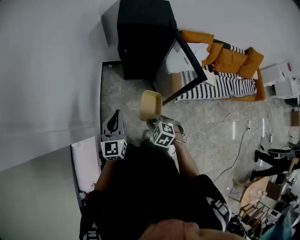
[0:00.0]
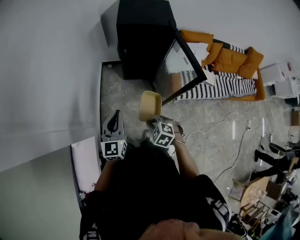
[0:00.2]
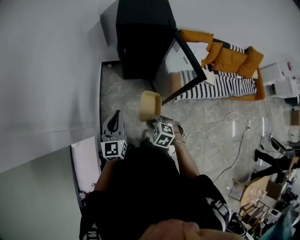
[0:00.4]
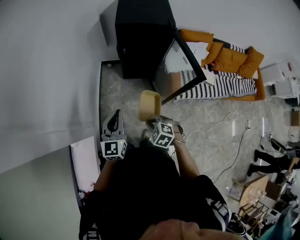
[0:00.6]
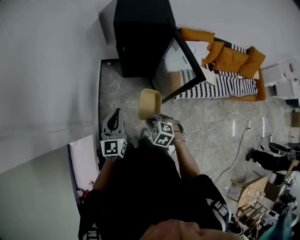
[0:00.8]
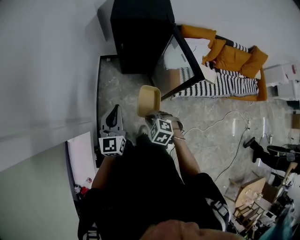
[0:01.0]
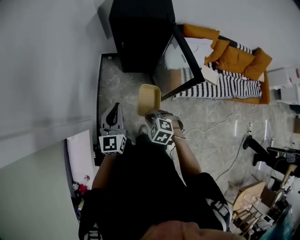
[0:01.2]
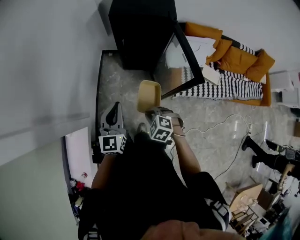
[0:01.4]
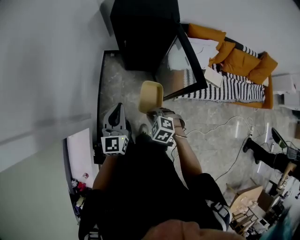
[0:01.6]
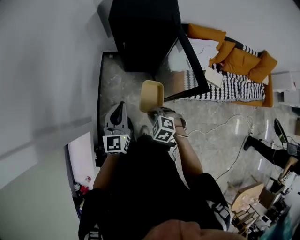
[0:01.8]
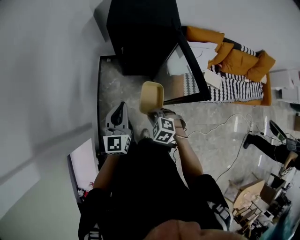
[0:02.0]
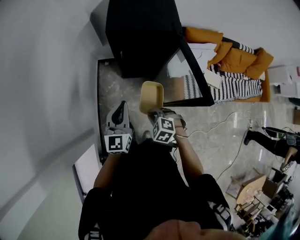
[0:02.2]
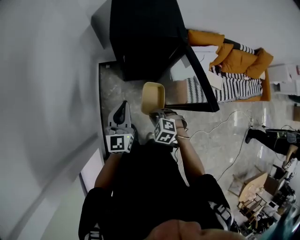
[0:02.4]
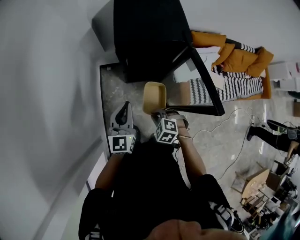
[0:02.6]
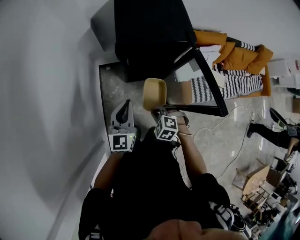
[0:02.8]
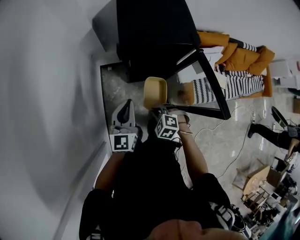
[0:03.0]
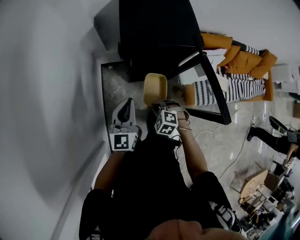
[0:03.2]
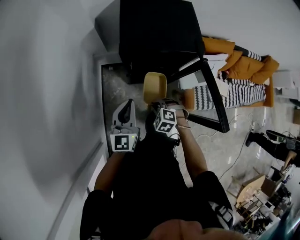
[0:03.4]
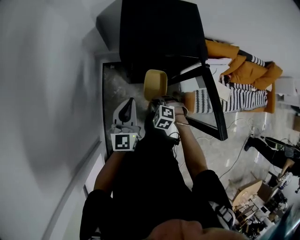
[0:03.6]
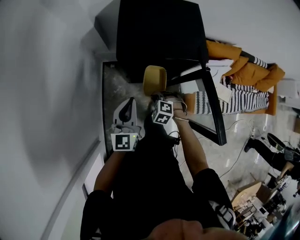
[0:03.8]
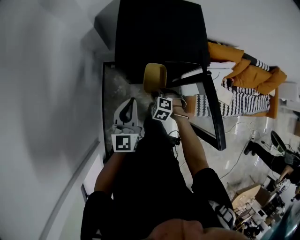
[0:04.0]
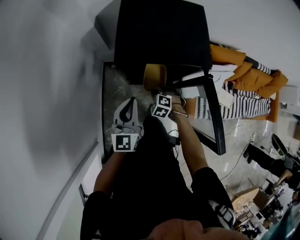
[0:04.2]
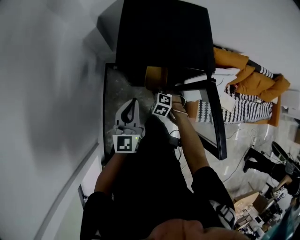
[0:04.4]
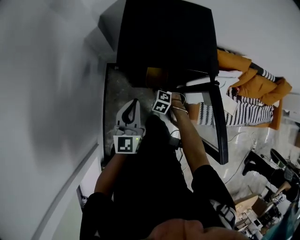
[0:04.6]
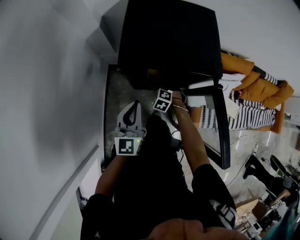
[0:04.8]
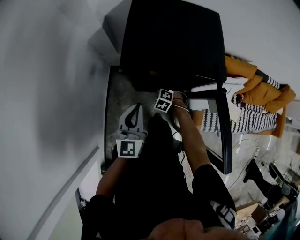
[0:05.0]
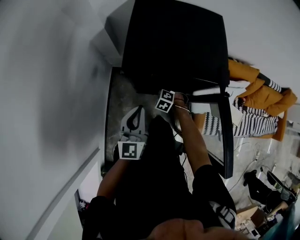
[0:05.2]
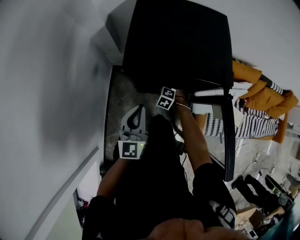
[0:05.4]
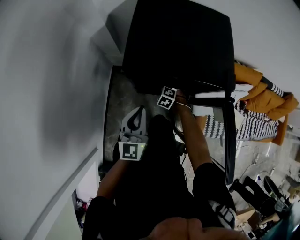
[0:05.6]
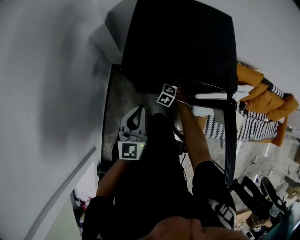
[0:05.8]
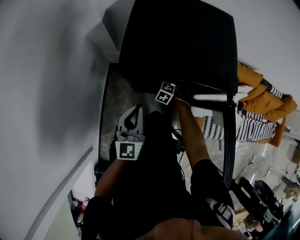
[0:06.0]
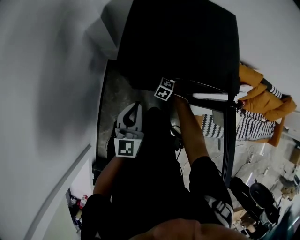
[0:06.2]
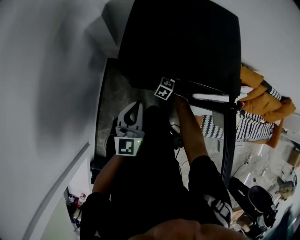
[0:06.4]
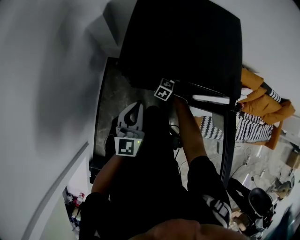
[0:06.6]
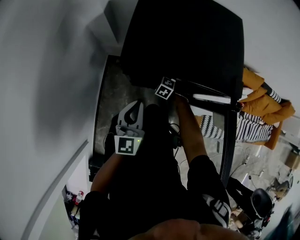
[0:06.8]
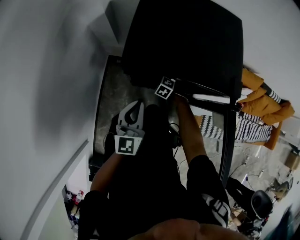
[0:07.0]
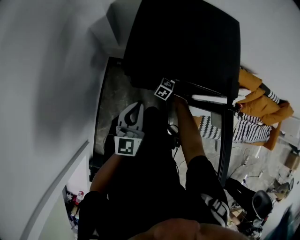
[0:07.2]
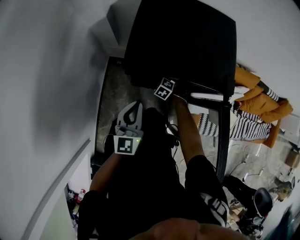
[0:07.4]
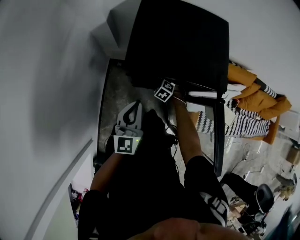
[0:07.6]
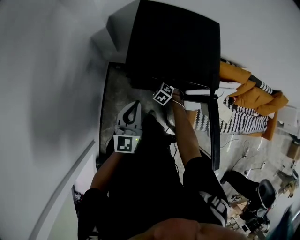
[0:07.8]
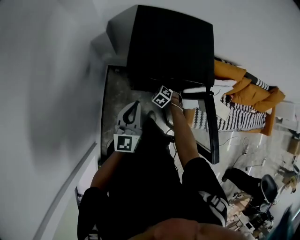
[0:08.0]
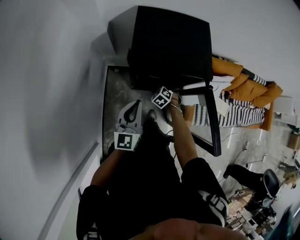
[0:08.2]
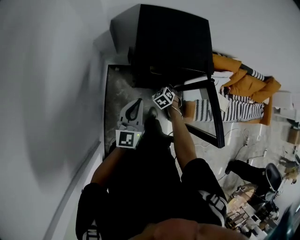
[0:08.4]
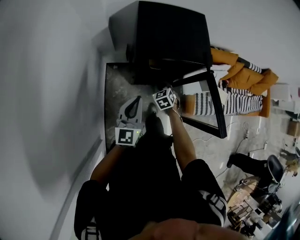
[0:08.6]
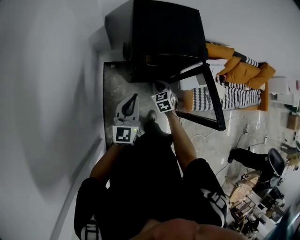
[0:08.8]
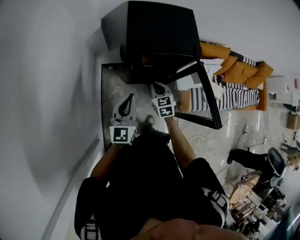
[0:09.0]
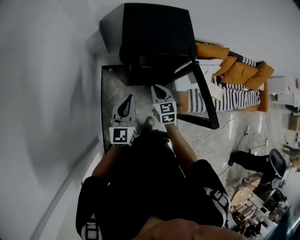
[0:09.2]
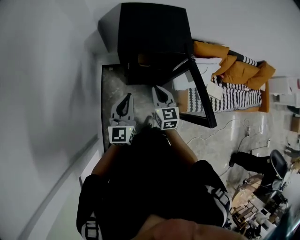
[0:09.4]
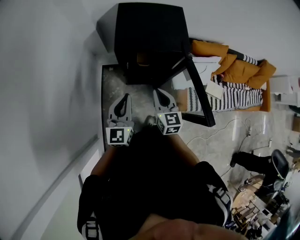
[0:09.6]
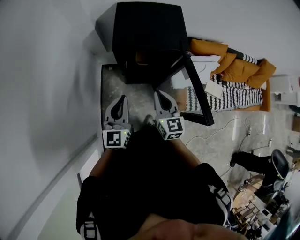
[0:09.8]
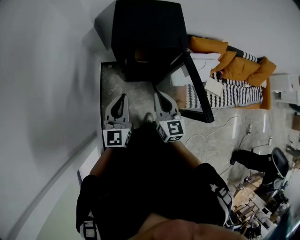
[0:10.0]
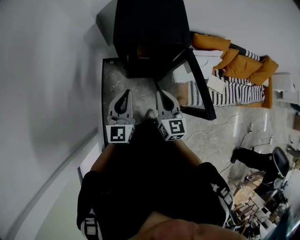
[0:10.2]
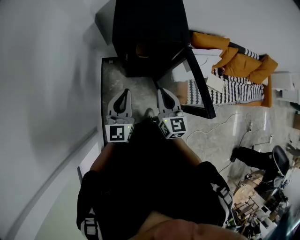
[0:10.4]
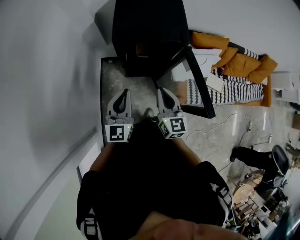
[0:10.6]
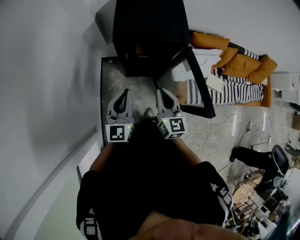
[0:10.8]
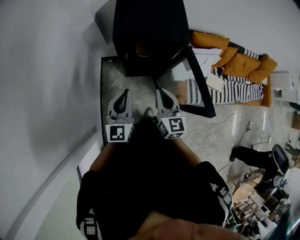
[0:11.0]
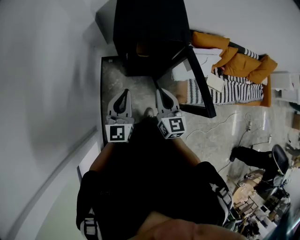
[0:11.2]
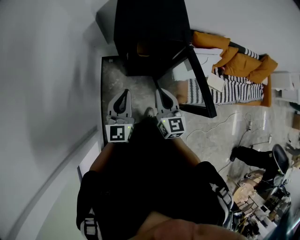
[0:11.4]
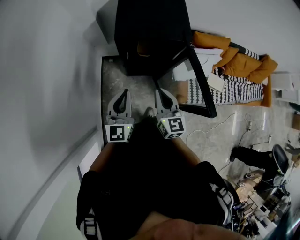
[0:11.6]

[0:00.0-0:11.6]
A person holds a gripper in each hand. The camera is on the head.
0:00.0 to 0:01.4: The grippers both shift to the right by about 10 cm.
0:01.4 to 0:02.8: Both grippers travel together forward, approximately 25 cm.
0:02.8 to 0:04.4: The right gripper shifts some 25 cm forward, downward and to the right, while the left gripper travels forward, to the right and downward by roughly 15 cm.
0:04.4 to 0:05.8: The right gripper travels downward and forward by roughly 15 cm; the left gripper travels downward by approximately 10 cm.
0:05.8 to 0:07.2: The right gripper opens up.
0:07.2 to 0:08.8: The right gripper travels upward and backward by approximately 30 cm, twists about 50 degrees clockwise, seen from behind, and closes its fingers. The left gripper moves upward, backward and to the left, approximately 20 cm.
0:08.8 to 0:10.2: The left gripper is displaced to the right and backward by about 10 cm. Meanwhile the right gripper shifts about 25 cm upward and backward, and angles its fingers upward, by some 30 degrees.
0:10.2 to 0:11.6: The grippers make only small movements.

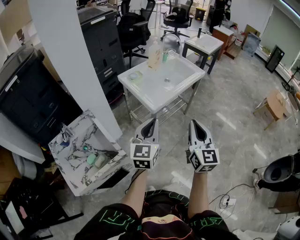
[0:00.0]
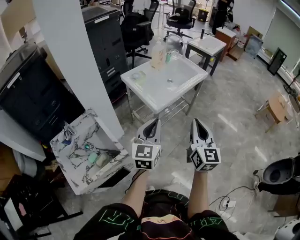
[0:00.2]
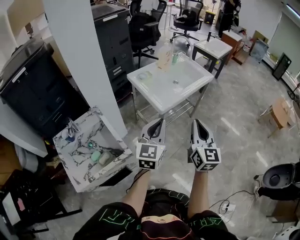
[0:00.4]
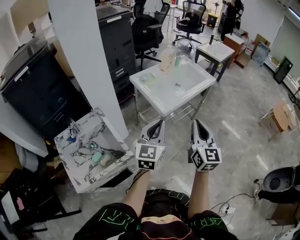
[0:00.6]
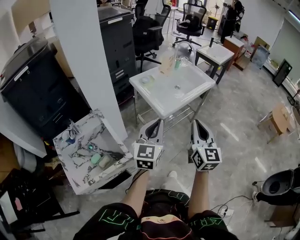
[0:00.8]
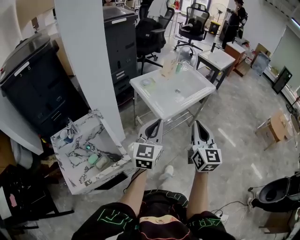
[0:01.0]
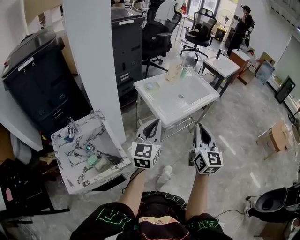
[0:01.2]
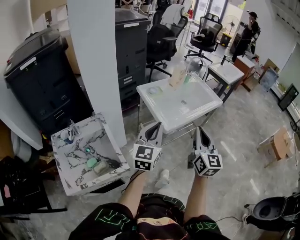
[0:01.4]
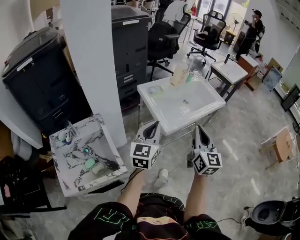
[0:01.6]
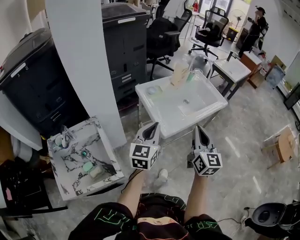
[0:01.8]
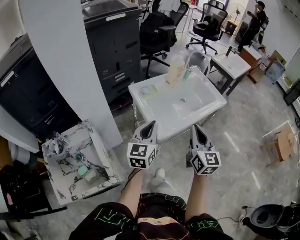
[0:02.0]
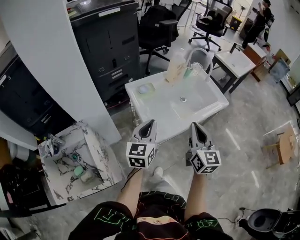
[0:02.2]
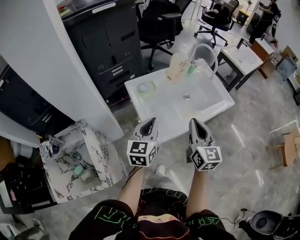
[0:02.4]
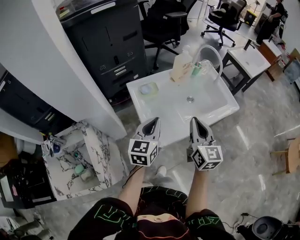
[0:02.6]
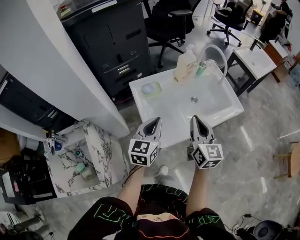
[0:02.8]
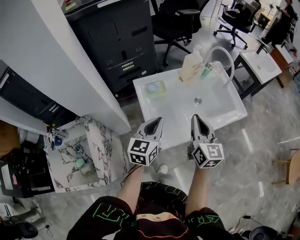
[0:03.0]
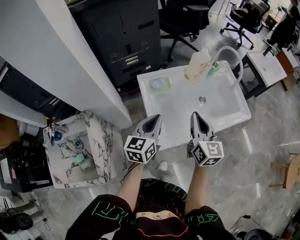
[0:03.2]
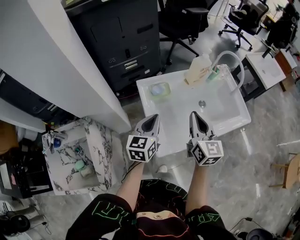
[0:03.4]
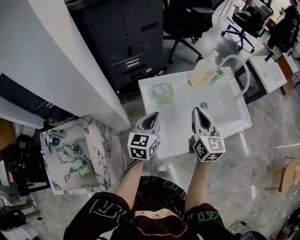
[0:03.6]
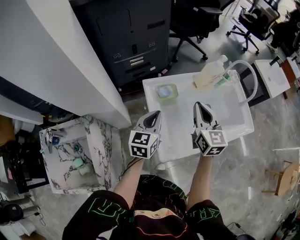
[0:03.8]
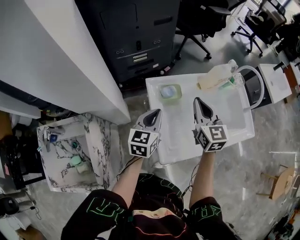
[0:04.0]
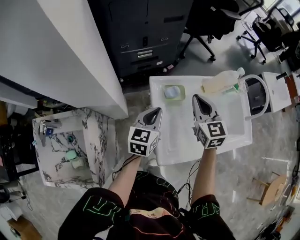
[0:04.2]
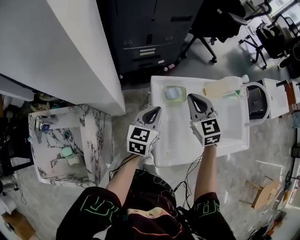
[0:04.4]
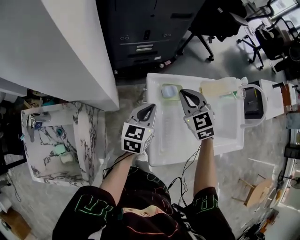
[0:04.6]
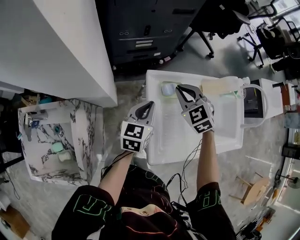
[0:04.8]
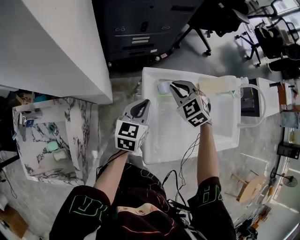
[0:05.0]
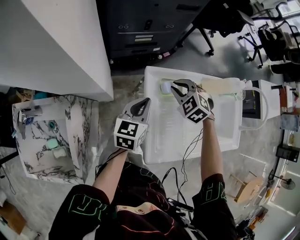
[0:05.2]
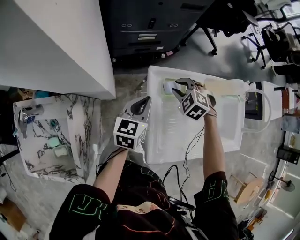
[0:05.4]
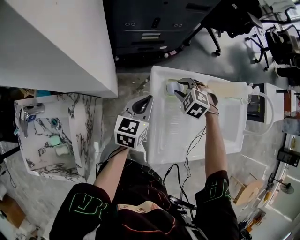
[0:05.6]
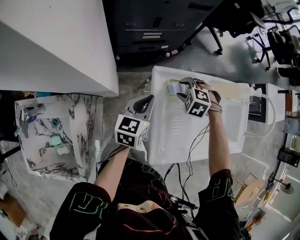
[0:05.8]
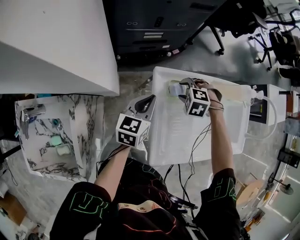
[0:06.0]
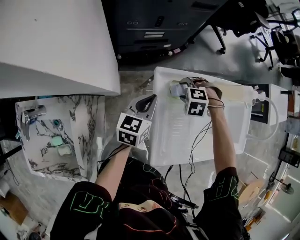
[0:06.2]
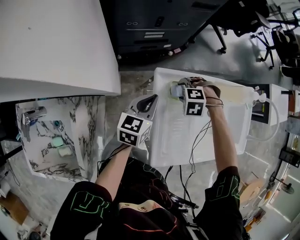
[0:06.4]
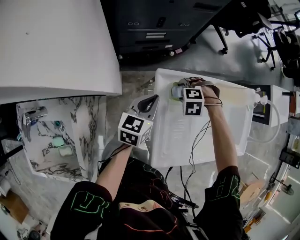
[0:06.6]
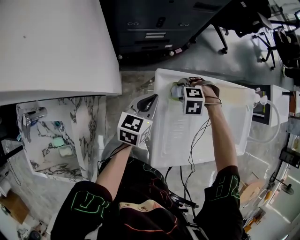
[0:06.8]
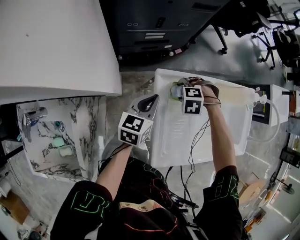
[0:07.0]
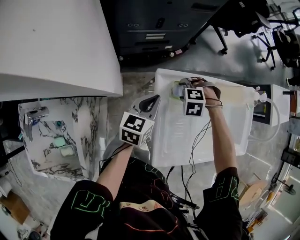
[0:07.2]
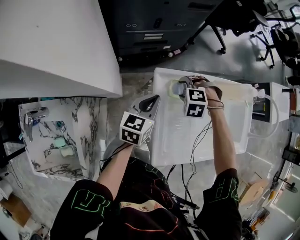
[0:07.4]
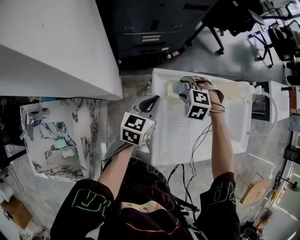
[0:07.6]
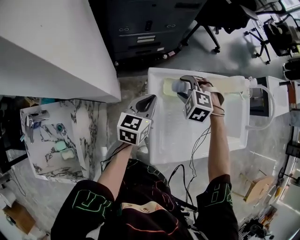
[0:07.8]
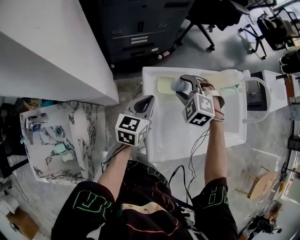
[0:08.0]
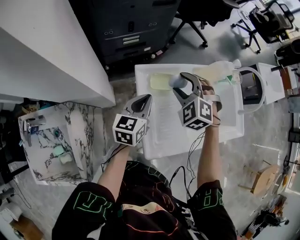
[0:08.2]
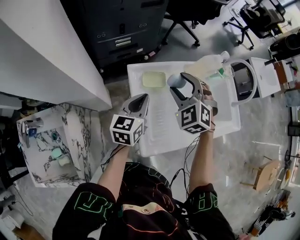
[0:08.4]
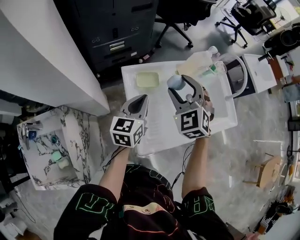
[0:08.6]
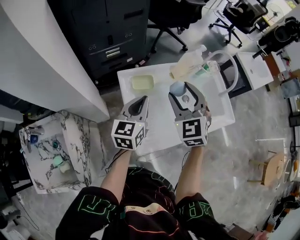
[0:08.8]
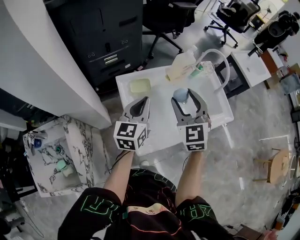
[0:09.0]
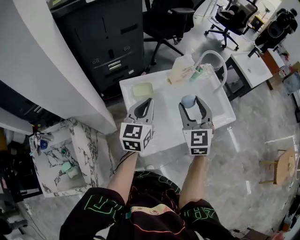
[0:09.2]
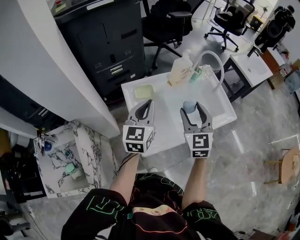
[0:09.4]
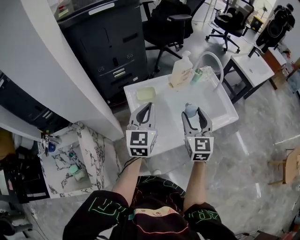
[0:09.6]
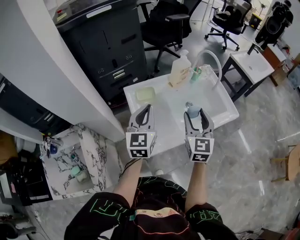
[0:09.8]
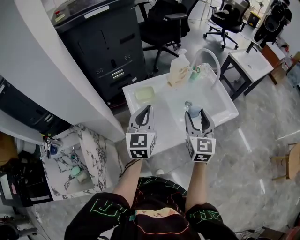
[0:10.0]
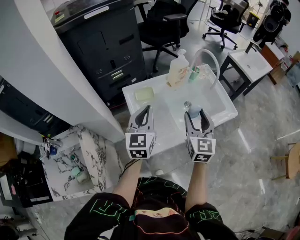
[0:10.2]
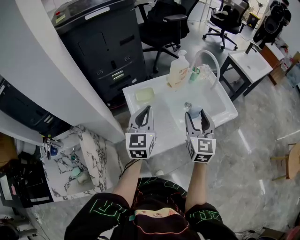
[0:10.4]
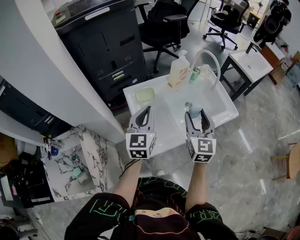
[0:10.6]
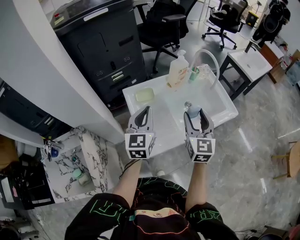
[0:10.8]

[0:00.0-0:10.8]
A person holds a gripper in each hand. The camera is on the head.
0:00.0 to 0:01.6: The left gripper shifts some 15 cm forward and to the left; the right gripper is displaced forward by some 15 cm.
0:01.6 to 0:03.0: The right gripper shifts approximately 30 cm forward. The left gripper heads forward and downward, covering approximately 25 cm.
0:03.0 to 0:04.6: The right gripper shifts about 30 cm forward and to the left, and rotates approximately 60 degrees; the left gripper shifts some 20 cm forward, to the left and downward.
0:04.6 to 0:06.2: The right gripper heads downward, covering approximately 15 cm, points its fingers about 50 degrees further downward, and opens up. The left gripper changes place by roughly 5 cm.
0:06.2 to 0:07.8: The right gripper travels upward by about 10 cm, and turns by some 20 degrees.
0:07.8 to 0:09.2: Both grippers move upward, to the right and backward, roughly 25 cm. The right gripper tips its fingers upward by roughly 50 degrees. Meanwhile the left gripper changes its angle by about 20 degrees.
0:09.2 to 0:10.8: The right gripper goes approximately 5 cm backward, and changes its angle by roughly 20 degrees.

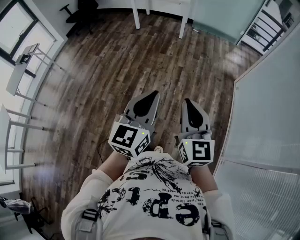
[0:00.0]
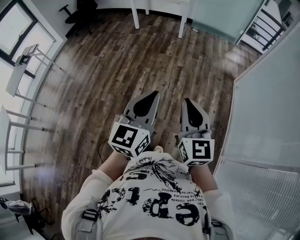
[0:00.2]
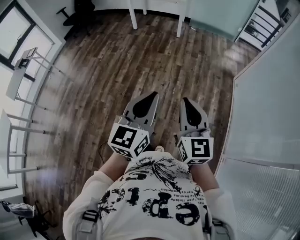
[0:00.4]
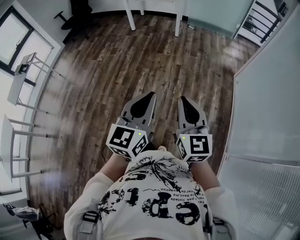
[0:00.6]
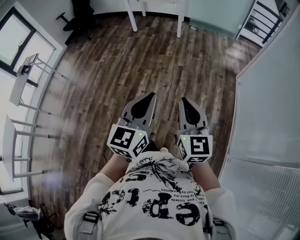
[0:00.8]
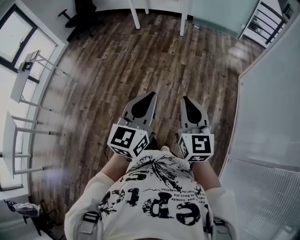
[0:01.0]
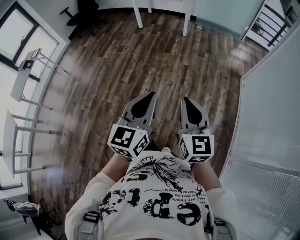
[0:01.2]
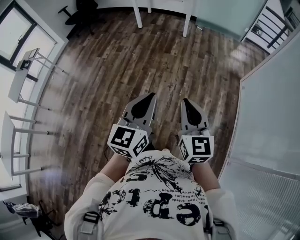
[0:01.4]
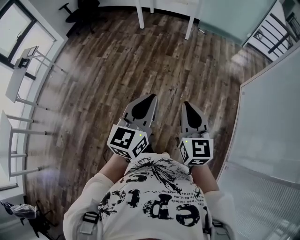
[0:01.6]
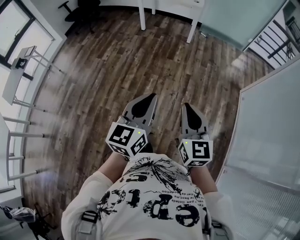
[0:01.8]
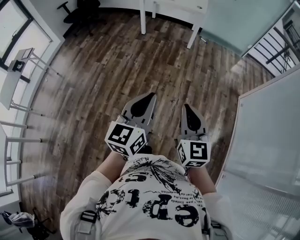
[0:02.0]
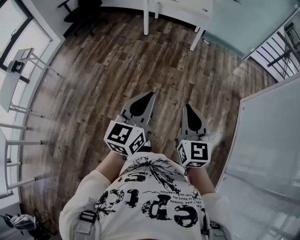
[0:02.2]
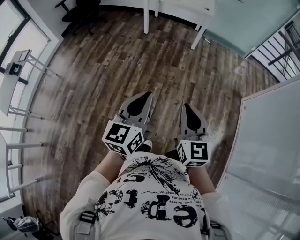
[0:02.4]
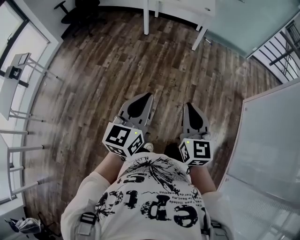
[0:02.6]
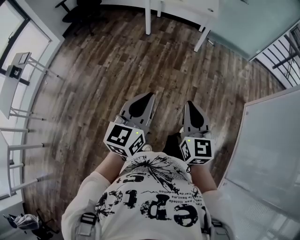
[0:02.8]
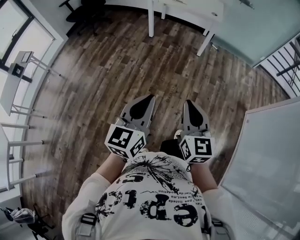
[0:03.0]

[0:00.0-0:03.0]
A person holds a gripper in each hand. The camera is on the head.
0:00.0 to 0:01.6: Both grippers move forward and to the left, some 15 cm.
0:01.6 to 0:03.0: Both grippers travel together forward and to the left, approximately 35 cm.
